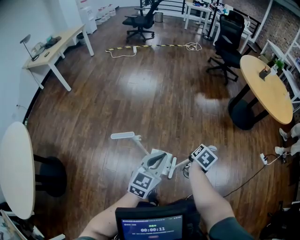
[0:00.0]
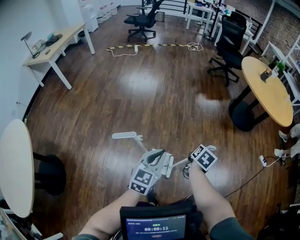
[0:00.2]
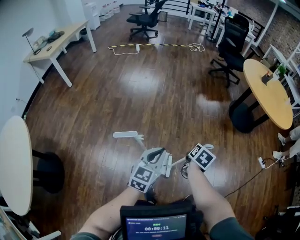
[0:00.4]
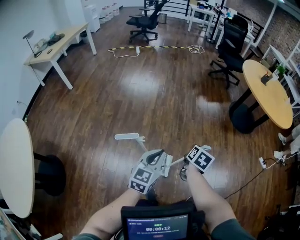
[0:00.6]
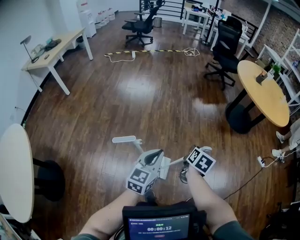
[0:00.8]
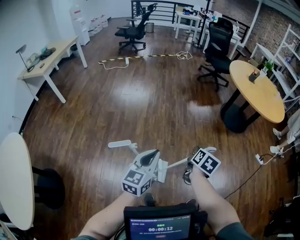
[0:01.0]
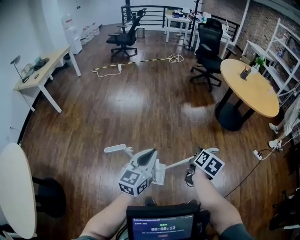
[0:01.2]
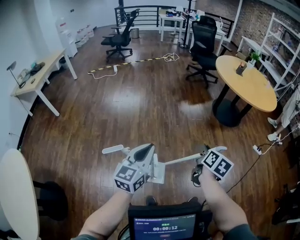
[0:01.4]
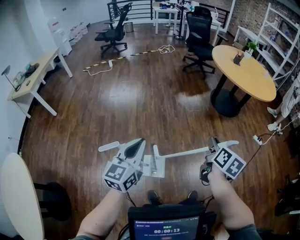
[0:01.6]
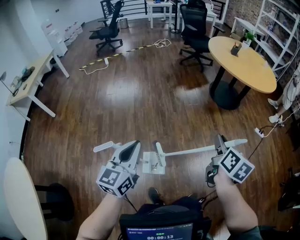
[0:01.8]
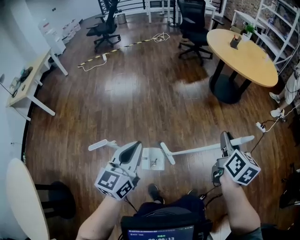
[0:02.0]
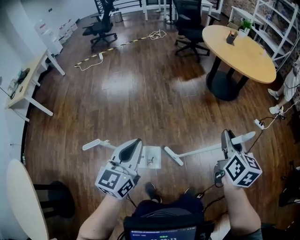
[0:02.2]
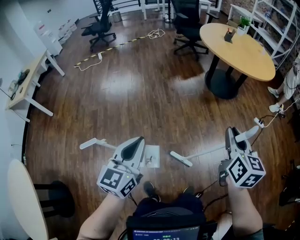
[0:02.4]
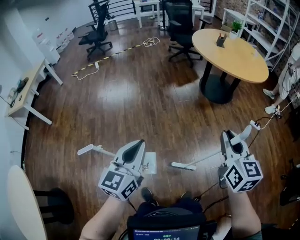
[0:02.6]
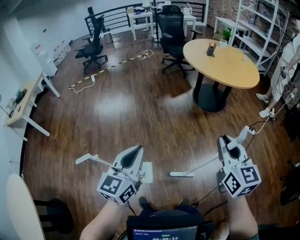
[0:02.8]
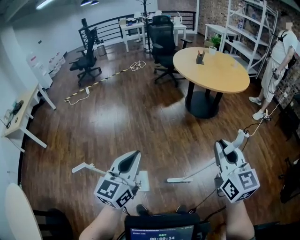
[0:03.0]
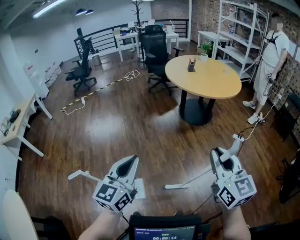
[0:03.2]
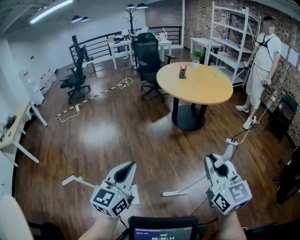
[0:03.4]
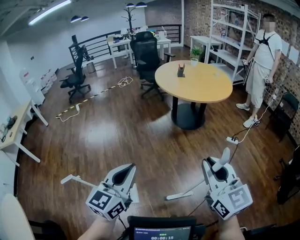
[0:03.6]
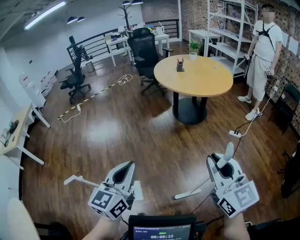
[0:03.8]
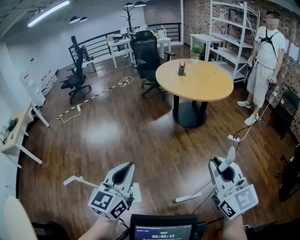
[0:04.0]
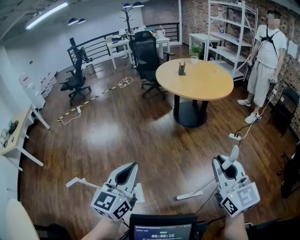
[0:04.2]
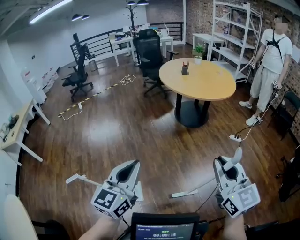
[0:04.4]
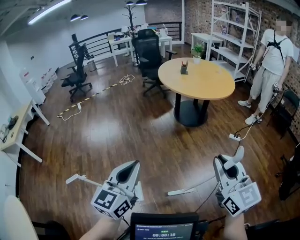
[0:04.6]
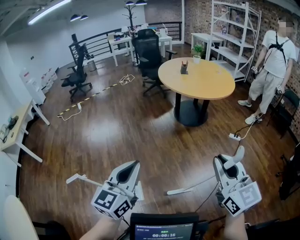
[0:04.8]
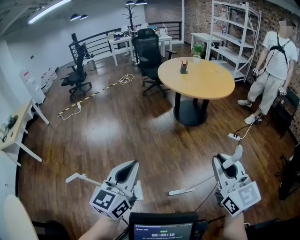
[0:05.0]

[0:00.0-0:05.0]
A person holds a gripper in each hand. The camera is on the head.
0:00.0 to 0:01.6: The left gripper goes roughly 10 cm upward; the right gripper shifts some 20 cm upward and to the right, and turns by about 20 degrees.
0:01.6 to 0:03.4: The pair of grippers is taken to the right, roughly 50 cm. The right gripper moves upward, roughly 25 cm, and swivels roughly 40 degrees.
0:03.4 to 0:05.0: The grippers make only small movements.

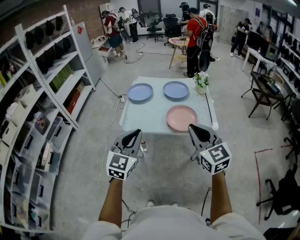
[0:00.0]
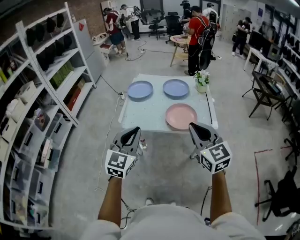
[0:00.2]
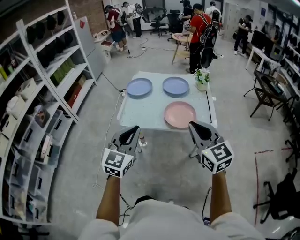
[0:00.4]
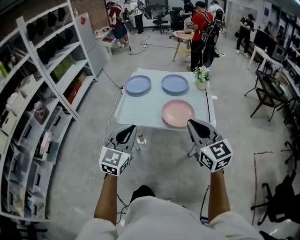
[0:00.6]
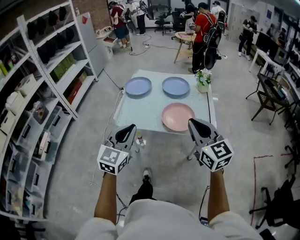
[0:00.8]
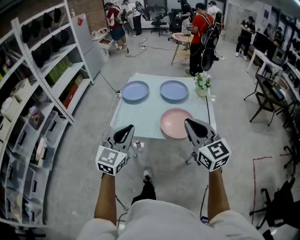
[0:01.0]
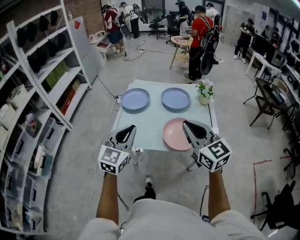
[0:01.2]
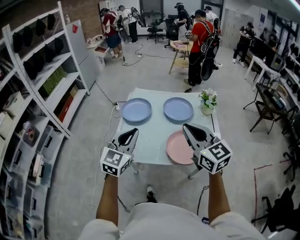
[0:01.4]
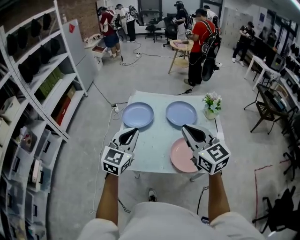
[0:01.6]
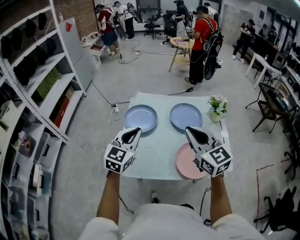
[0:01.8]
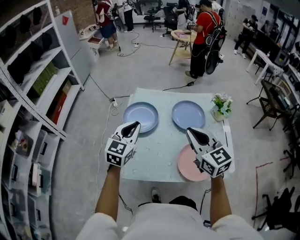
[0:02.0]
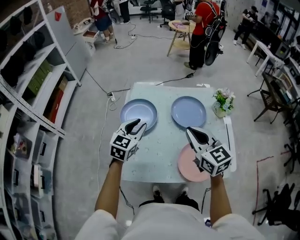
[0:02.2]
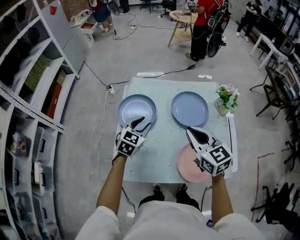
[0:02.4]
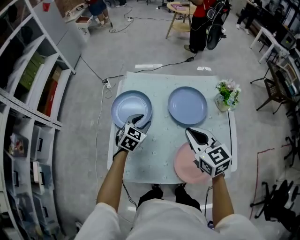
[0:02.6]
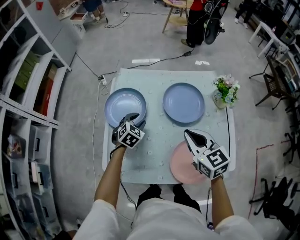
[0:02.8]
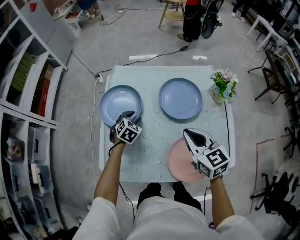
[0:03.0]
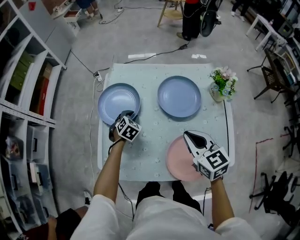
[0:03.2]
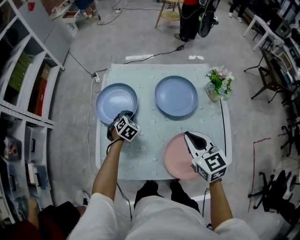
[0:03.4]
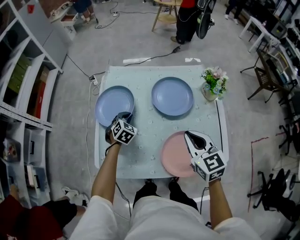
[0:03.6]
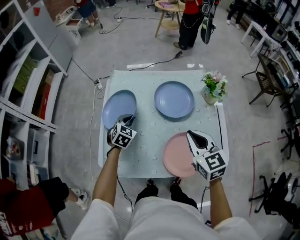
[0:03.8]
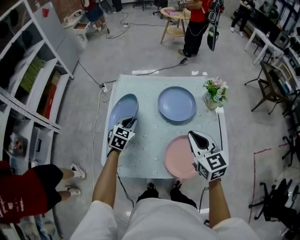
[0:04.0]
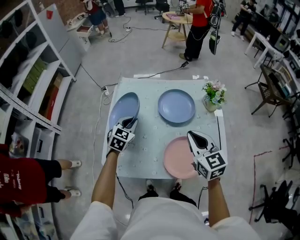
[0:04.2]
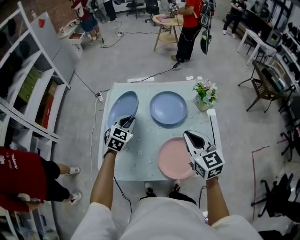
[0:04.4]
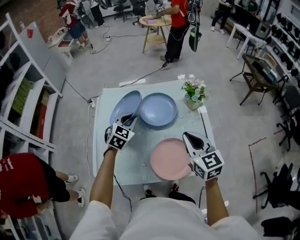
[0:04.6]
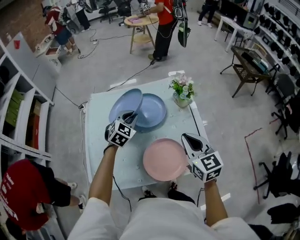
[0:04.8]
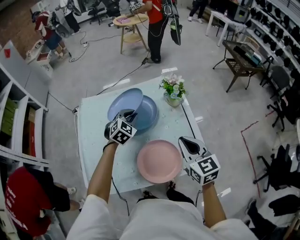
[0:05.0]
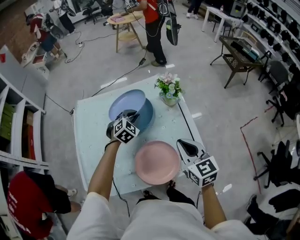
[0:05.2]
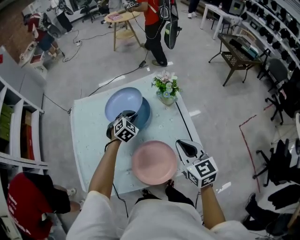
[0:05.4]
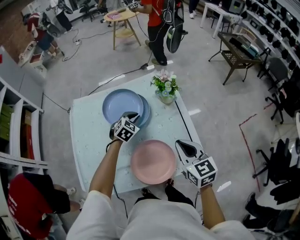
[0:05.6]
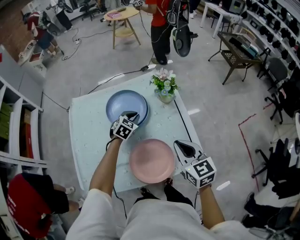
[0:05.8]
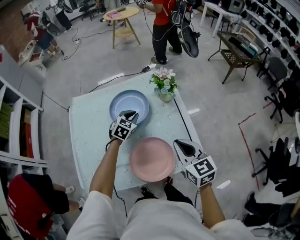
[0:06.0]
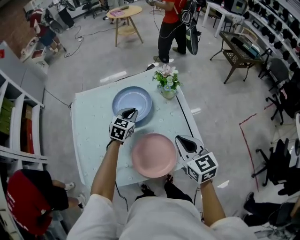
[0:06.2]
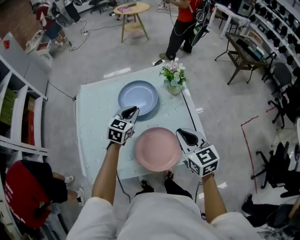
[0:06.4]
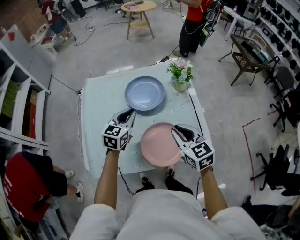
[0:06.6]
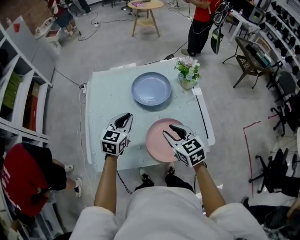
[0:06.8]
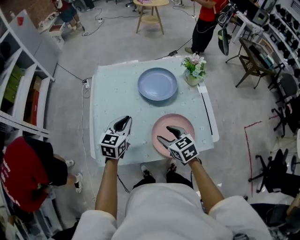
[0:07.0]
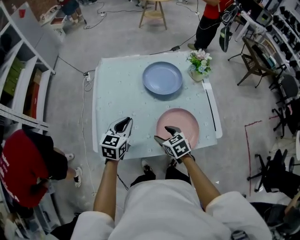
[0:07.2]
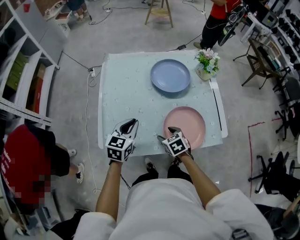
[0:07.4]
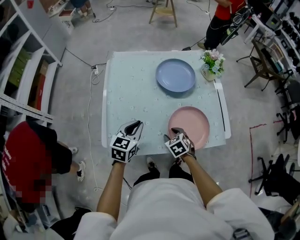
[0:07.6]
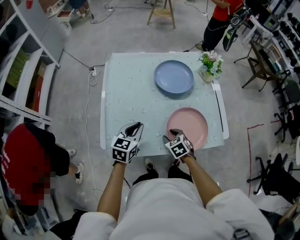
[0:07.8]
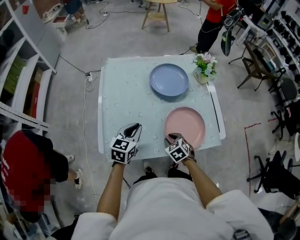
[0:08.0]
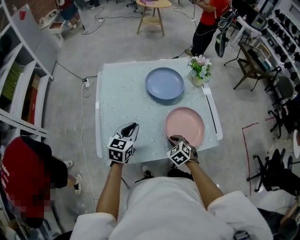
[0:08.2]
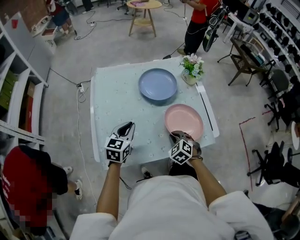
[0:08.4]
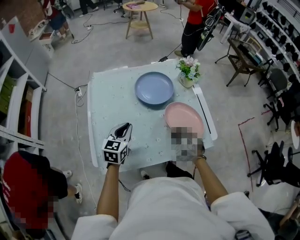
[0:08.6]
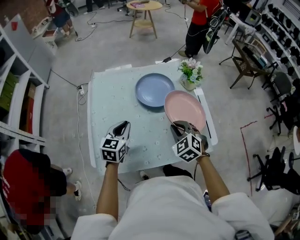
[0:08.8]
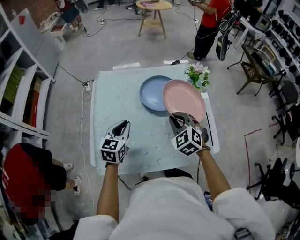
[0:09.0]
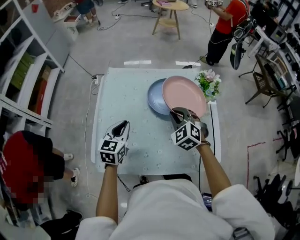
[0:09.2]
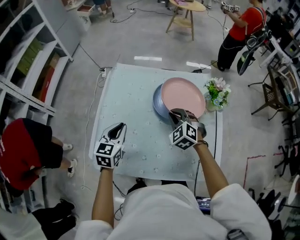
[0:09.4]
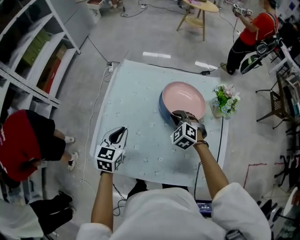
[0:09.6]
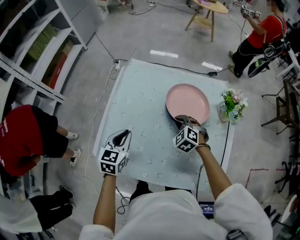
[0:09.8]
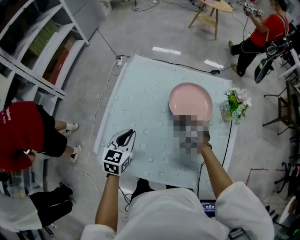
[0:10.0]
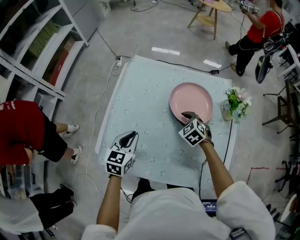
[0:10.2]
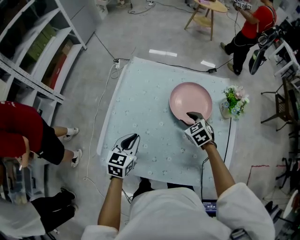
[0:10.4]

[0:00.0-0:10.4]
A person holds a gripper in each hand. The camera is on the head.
0:00.0 to 0:01.4: The two grippers go some 25 cm forward.
0:01.4 to 0:03.0: The right gripper travels forward and downward by about 35 cm, and swivels roughly 20 degrees. The left gripper heads forward and downward, covering roughly 50 cm, angles its fingers downward, by about 50 degrees, and opens up.
0:03.0 to 0:04.4: The left gripper is displaced upward by roughly 20 cm, swivels some 20 degrees, and closes up. The right gripper goes roughly 10 cm upward and backward.
0:04.4 to 0:06.0: The left gripper goes roughly 30 cm to the right, forward and downward; the right gripper travels to the right by about 15 cm.
0:06.0 to 0:07.4: The right gripper goes approximately 35 cm to the left and downward, tips its fingers downward by some 30 degrees, and opens its fingers. The left gripper heads backward and to the left, covering some 35 cm, and changes its angle by roughly 30 degrees.
0:07.4 to 0:09.0: The right gripper heads upward, forward and to the right, covering some 25 cm, changes its angle by roughly 40 degrees, and closes; the left gripper moves forward, some 10 cm.
0:09.0 to 0:10.4: The right gripper travels forward and downward by about 20 cm, turns by roughly 20 degrees, and opens up; the left gripper moves to the left, about 5 cm.

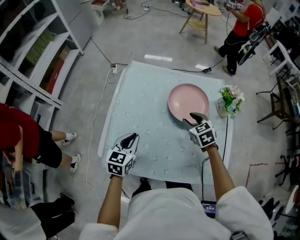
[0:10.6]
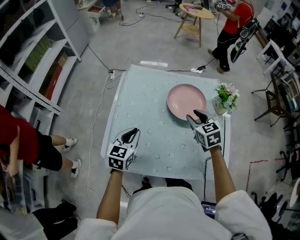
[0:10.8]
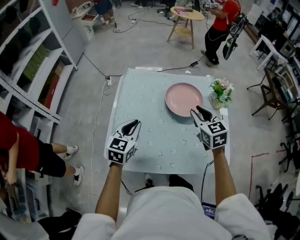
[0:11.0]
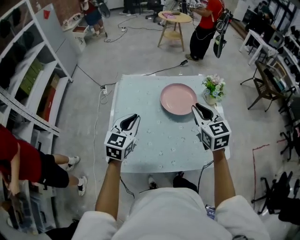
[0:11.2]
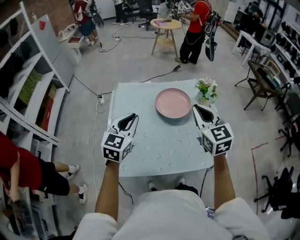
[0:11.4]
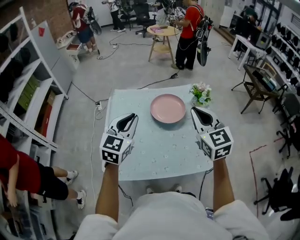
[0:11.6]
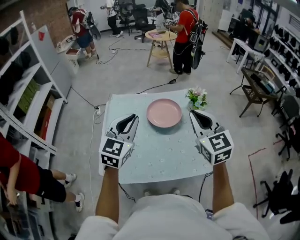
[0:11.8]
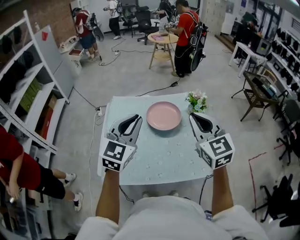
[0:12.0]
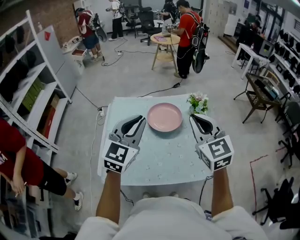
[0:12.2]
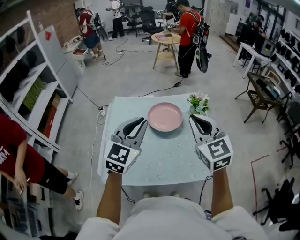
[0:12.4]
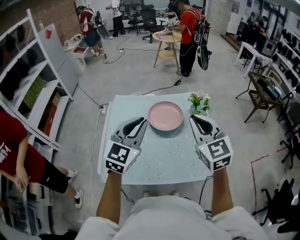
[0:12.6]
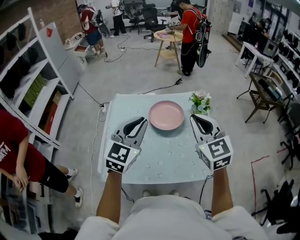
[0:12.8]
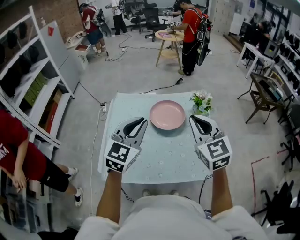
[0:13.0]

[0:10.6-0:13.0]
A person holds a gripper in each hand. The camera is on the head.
0:10.6 to 0:11.8: The right gripper goes some 35 cm upward and backward, tilts its fingers some 40 degrees upward, and closes, while the left gripper heads upward, covering about 25 cm, and rotates some 40 degrees.
0:11.8 to 0:13.0: There are only small adjustments of the grippers.
